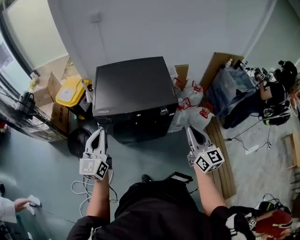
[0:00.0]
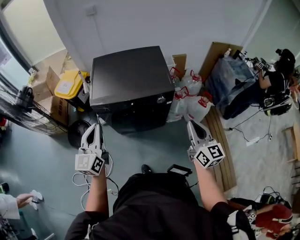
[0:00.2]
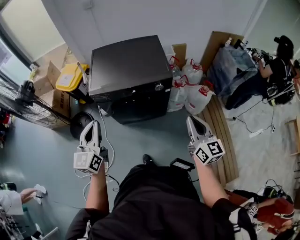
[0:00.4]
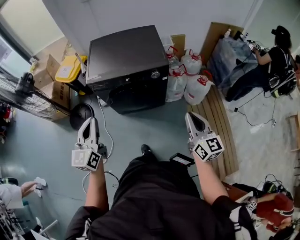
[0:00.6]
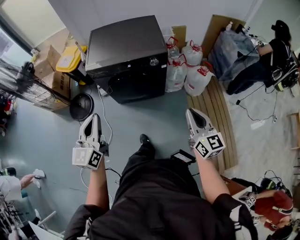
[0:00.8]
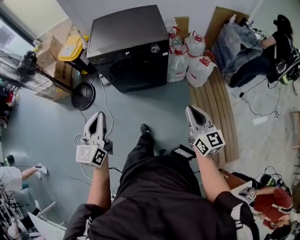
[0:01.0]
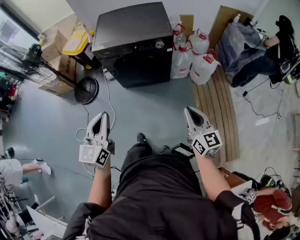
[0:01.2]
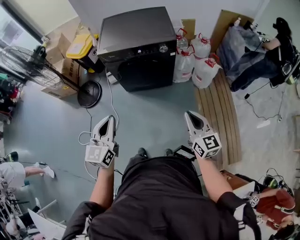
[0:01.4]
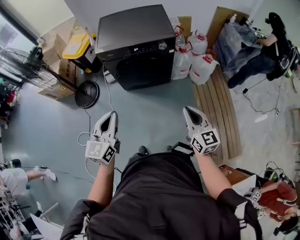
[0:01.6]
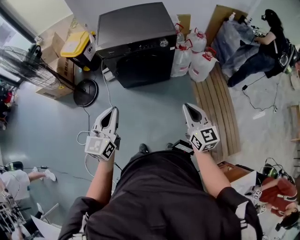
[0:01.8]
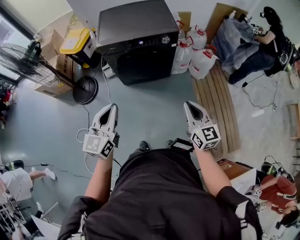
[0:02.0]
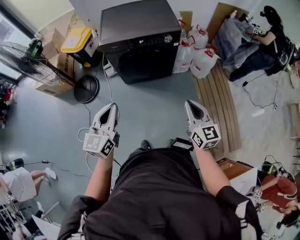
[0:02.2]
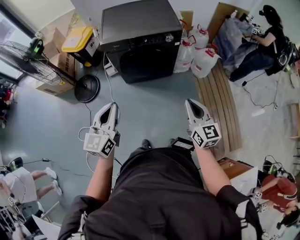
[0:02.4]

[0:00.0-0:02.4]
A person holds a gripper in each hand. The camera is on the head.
0.0 to 1.2 s: The grippers both shift backward by approximately 30 cm.
1.2 to 2.4 s: Both grippers move to the left, roughly 10 cm.

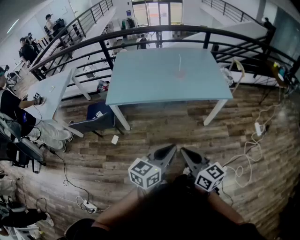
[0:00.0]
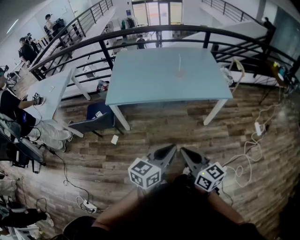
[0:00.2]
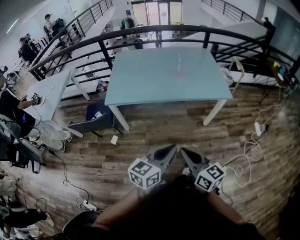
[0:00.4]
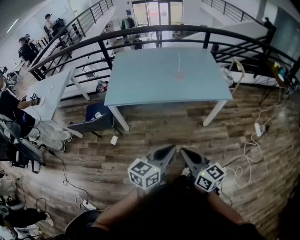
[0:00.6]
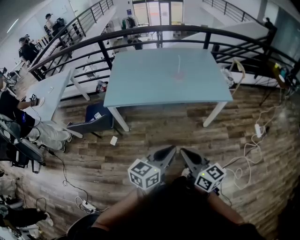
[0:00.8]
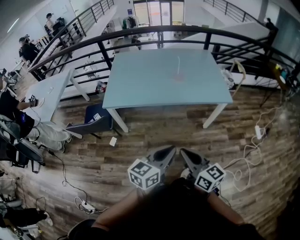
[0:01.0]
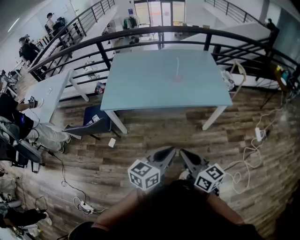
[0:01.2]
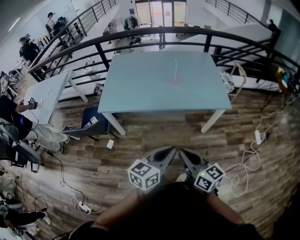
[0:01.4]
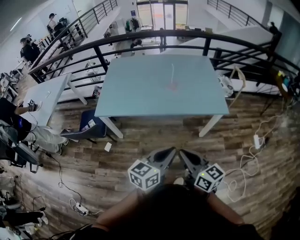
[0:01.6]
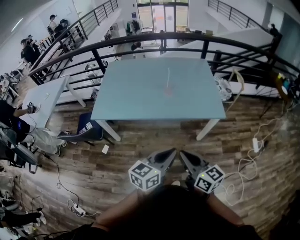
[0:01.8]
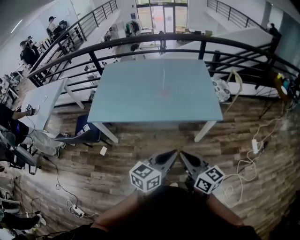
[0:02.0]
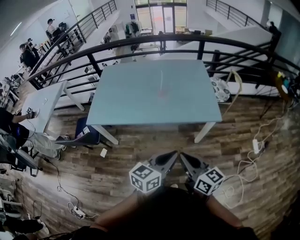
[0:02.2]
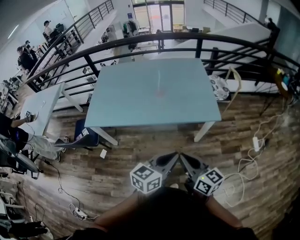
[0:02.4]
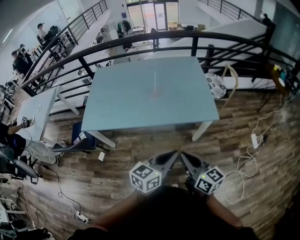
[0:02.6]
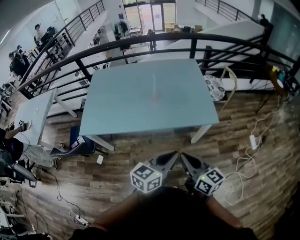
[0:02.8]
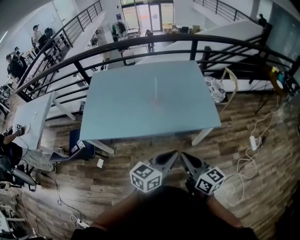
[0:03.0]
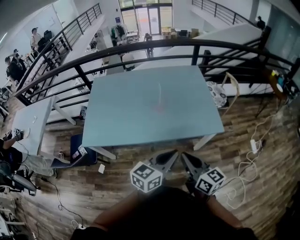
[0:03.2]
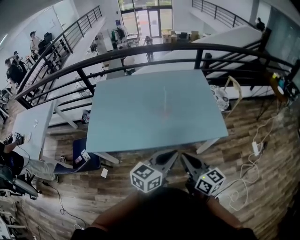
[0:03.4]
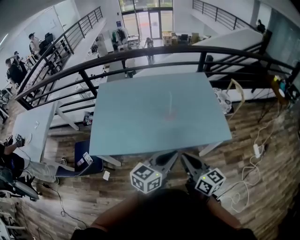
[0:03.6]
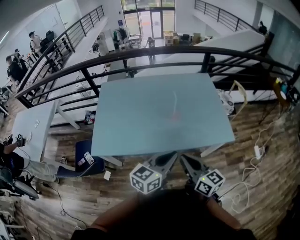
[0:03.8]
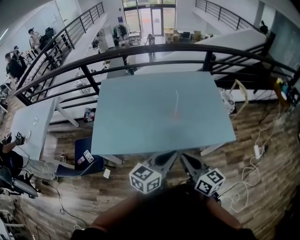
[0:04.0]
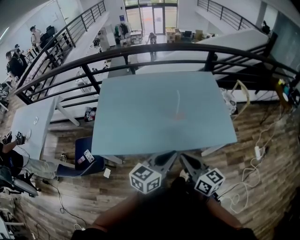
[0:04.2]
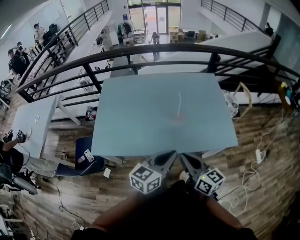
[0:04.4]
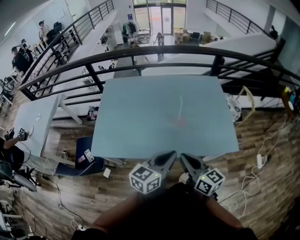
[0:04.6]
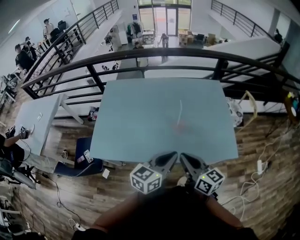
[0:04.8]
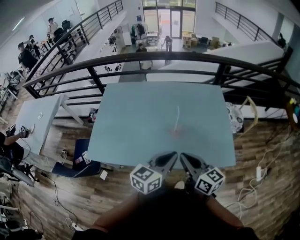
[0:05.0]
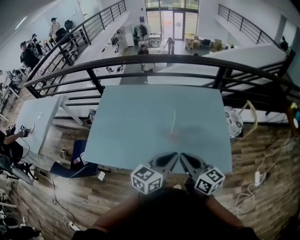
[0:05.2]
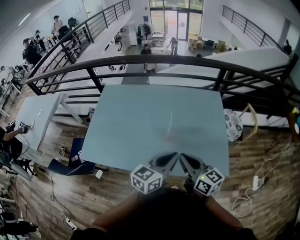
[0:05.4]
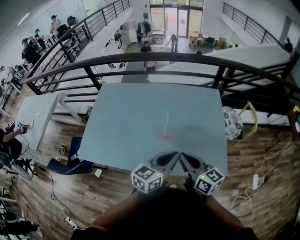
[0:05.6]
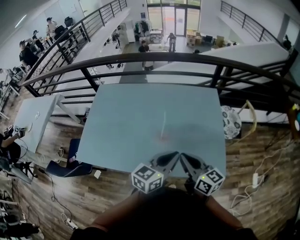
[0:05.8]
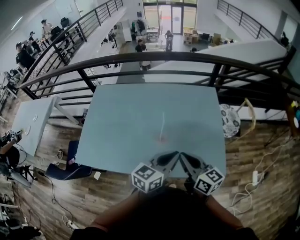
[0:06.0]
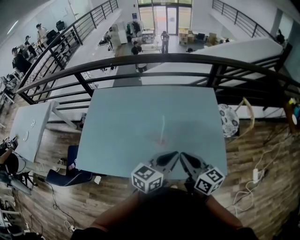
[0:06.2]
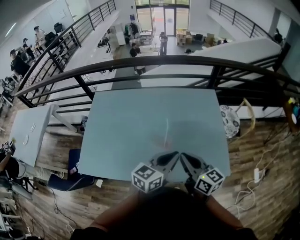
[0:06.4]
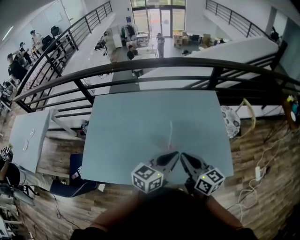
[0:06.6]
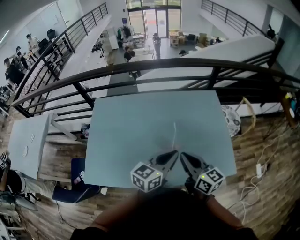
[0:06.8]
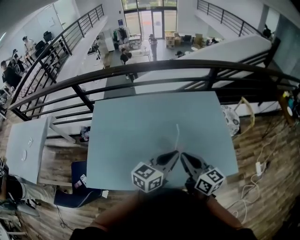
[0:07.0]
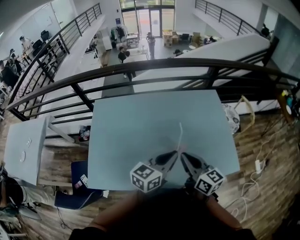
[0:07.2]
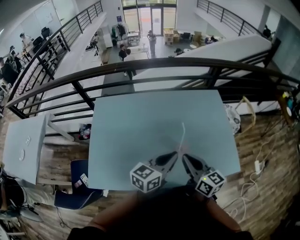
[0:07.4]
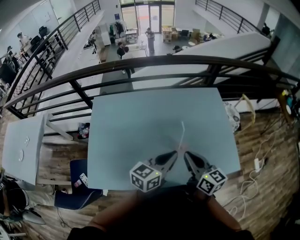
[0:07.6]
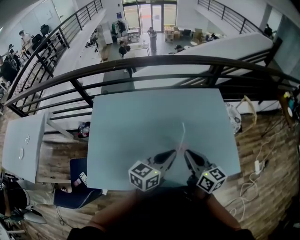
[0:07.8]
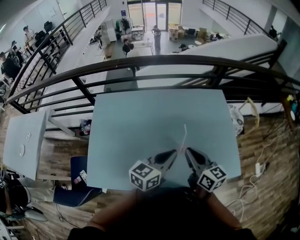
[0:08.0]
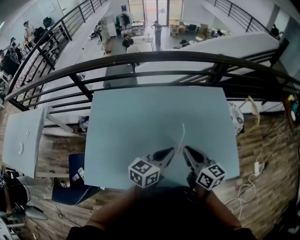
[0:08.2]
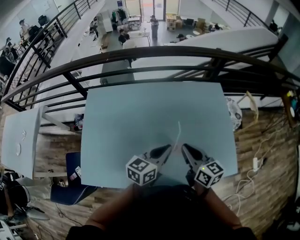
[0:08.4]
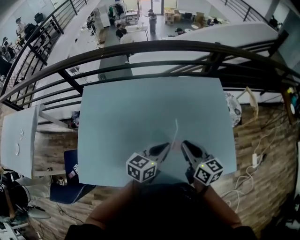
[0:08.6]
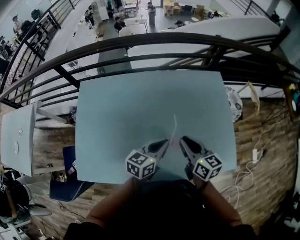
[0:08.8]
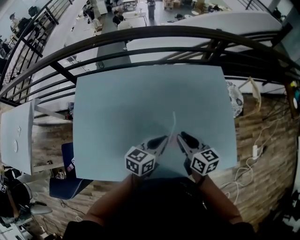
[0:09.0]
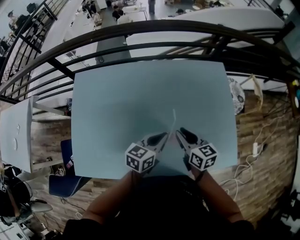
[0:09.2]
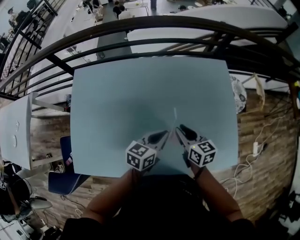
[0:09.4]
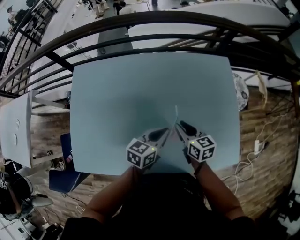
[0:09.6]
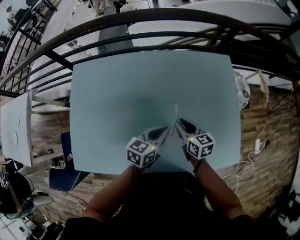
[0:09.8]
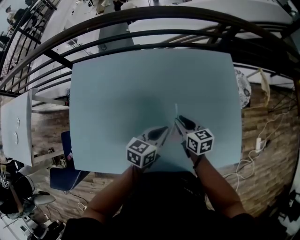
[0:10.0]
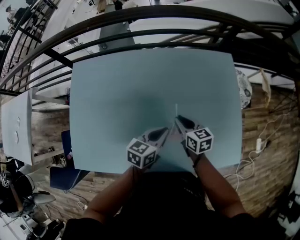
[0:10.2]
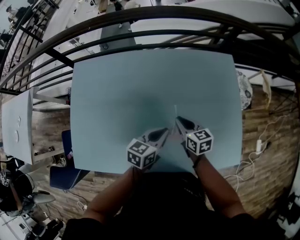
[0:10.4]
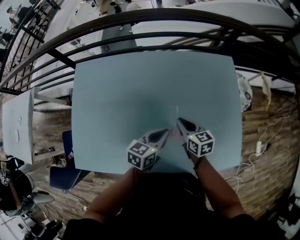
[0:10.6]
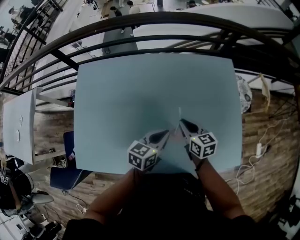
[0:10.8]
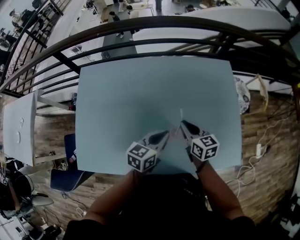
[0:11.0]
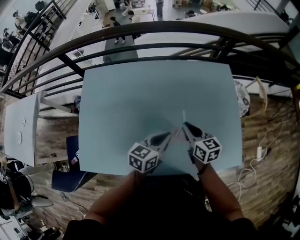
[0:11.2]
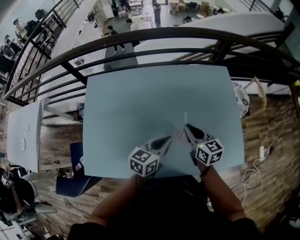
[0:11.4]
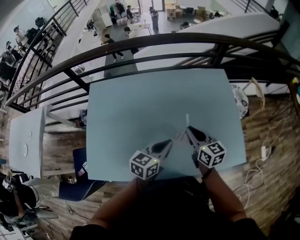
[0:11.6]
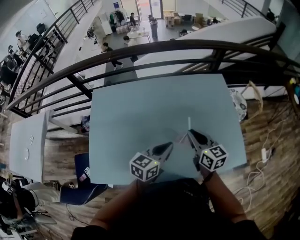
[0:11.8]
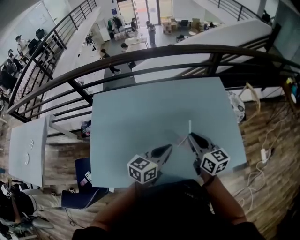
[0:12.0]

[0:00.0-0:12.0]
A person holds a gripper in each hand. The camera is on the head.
0.0 to 1.6 s: Both grippers travel together forward and to the right, some 20 cm.
1.6 to 3.0 s: Both grippers move forward and to the right, roughly 20 cm.
3.0 to 4.4 s: Both grippers travel together to the left and forward, approximately 20 cm.
4.4 to 6.0 s: The right gripper travels forward and to the right by some 25 cm, while the left gripper goes some 25 cm to the right and forward.
6.0 to 7.6 s: Both grippers travel together to the left, approximately 20 cm.
7.6 to 9.0 s: The left gripper goes roughly 15 cm downward and forward. Meanwhile the right gripper shifts roughly 20 cm forward and downward.
9.0 to 10.4 s: The right gripper goes about 15 cm downward and forward. The left gripper goes some 5 cm downward.
10.4 to 12.0 s: The two grippers go about 20 cm upward and backward. The right gripper rotates roughly 20 degrees.

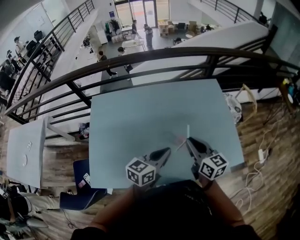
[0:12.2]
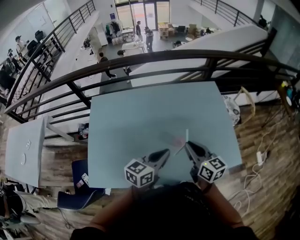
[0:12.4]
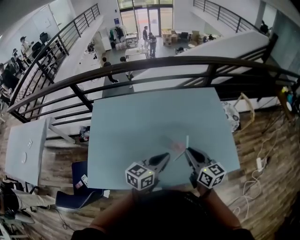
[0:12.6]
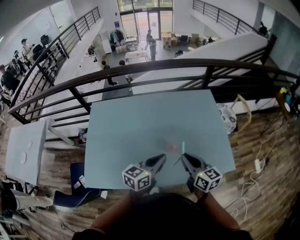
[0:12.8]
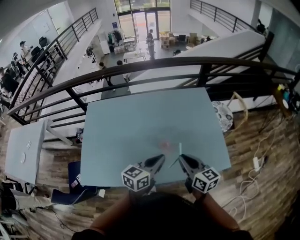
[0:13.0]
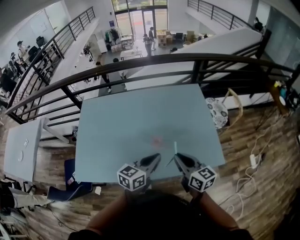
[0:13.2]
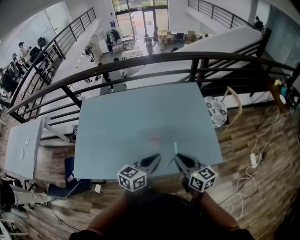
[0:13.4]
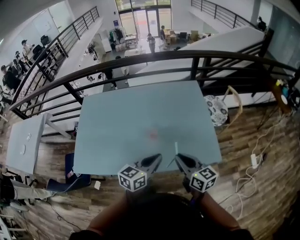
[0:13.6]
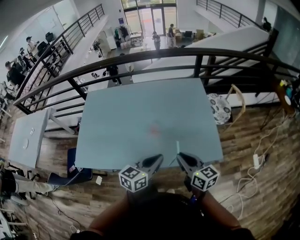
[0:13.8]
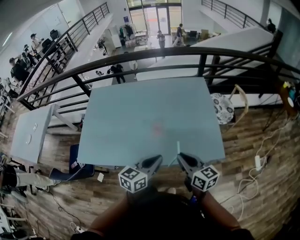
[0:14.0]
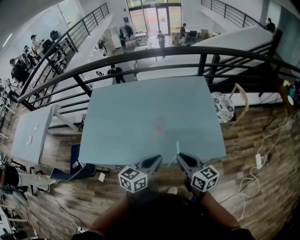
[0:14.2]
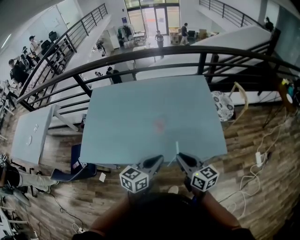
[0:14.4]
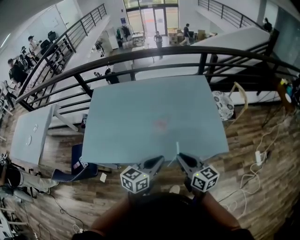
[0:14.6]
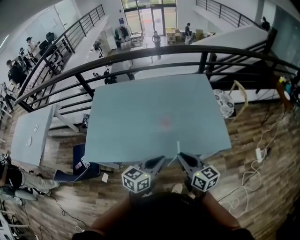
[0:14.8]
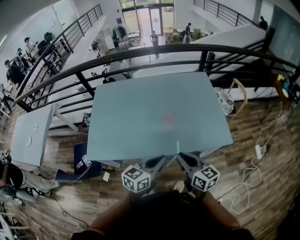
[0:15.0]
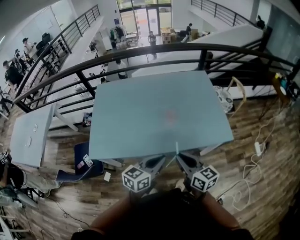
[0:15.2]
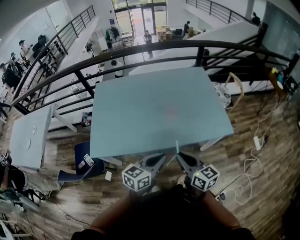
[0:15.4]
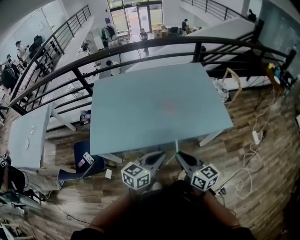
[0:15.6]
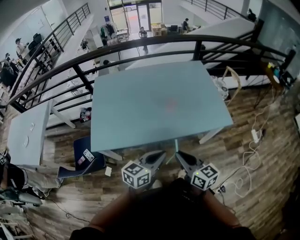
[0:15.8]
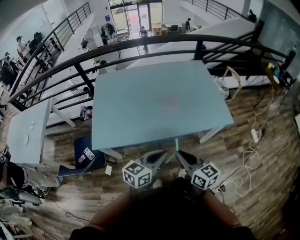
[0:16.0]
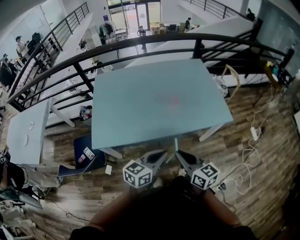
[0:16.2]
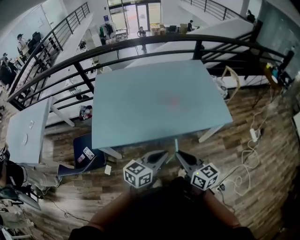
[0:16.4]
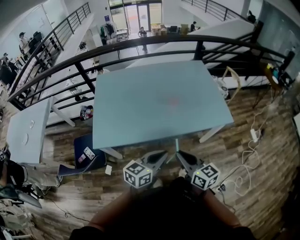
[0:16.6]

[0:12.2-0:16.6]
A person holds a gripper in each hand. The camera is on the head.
12.2 to 13.6 s: The grippers both shift to the right and backward by some 20 cm.
13.6 to 15.2 s: The two grippers go some 20 cm backward and to the left.
15.2 to 16.6 s: Both grippers move backward and to the left, approximately 10 cm.

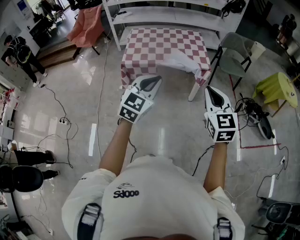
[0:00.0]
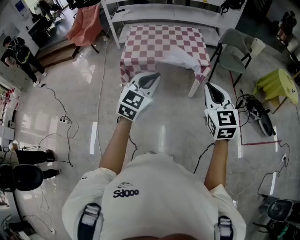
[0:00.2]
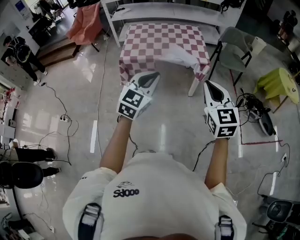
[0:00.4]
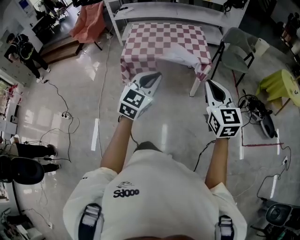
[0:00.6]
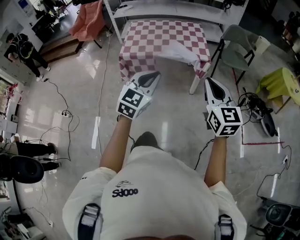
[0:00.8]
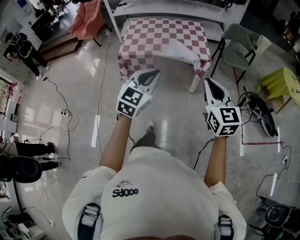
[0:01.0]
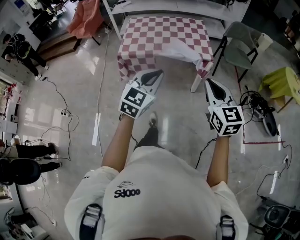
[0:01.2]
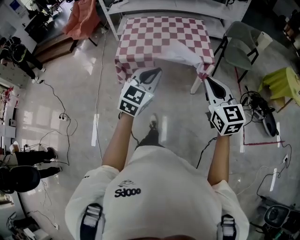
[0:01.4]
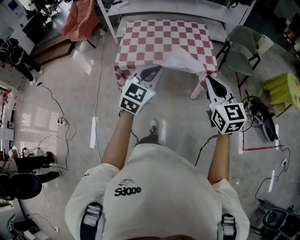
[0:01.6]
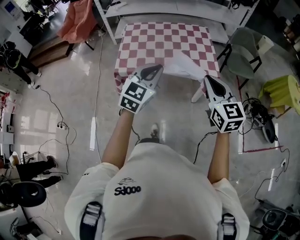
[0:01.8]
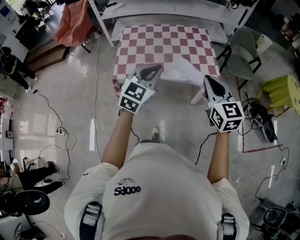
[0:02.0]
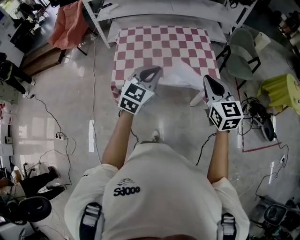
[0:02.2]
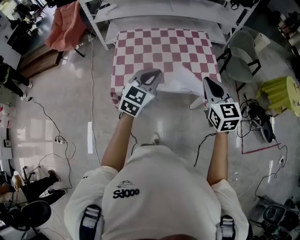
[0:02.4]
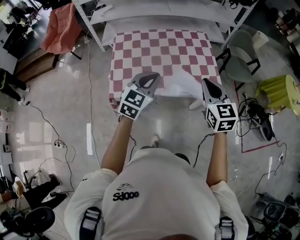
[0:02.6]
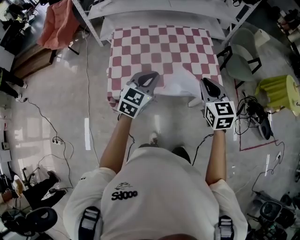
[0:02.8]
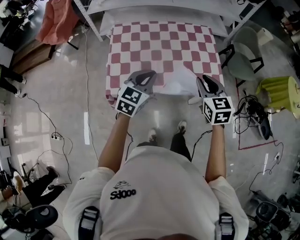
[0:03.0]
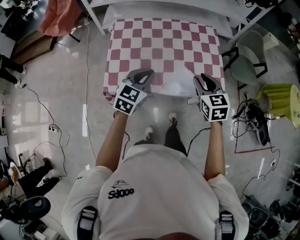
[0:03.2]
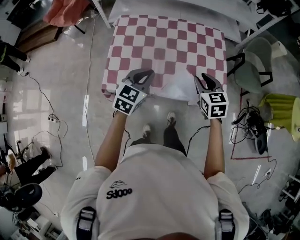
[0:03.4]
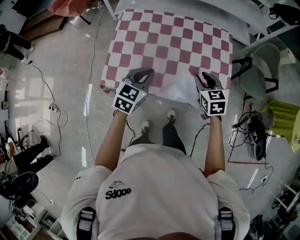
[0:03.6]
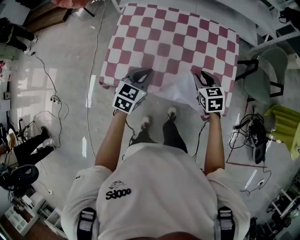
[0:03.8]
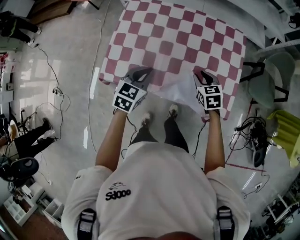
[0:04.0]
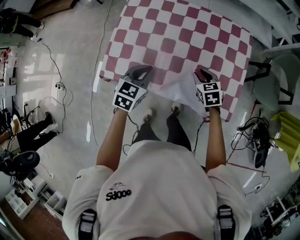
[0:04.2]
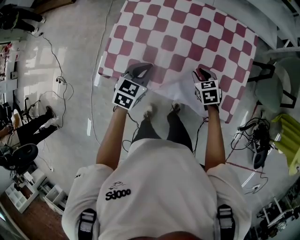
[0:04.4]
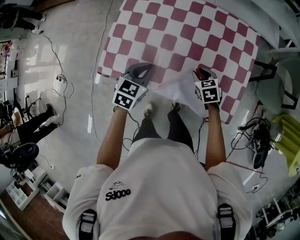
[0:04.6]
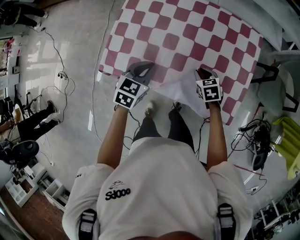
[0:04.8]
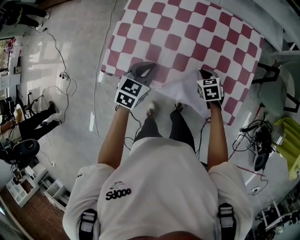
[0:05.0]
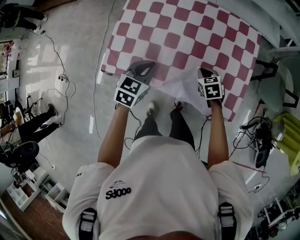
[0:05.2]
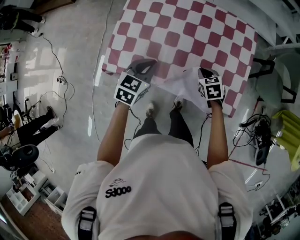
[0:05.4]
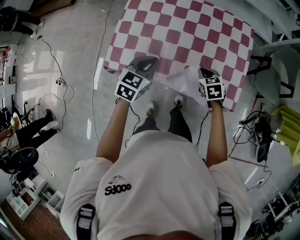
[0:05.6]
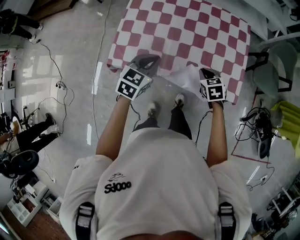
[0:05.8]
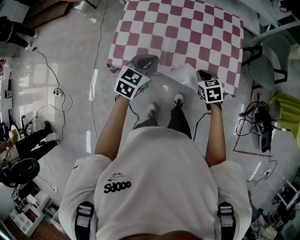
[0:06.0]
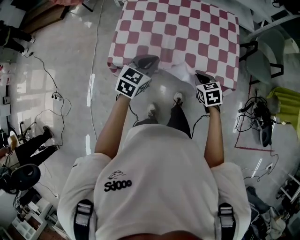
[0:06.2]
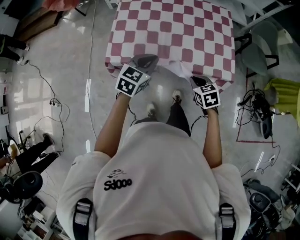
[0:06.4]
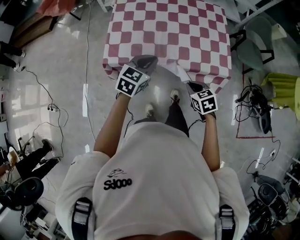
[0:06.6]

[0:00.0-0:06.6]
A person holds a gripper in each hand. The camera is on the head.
0.0 to 1.6 s: The two grippers go some 20 cm forward.
1.6 to 3.2 s: The left gripper is displaced forward and to the left by approximately 35 cm. The right gripper is displaced forward by about 35 cm, swivels some 20 degrees, and opens.
3.2 to 5.0 s: The right gripper moves downward and forward, roughly 30 cm, changes its angle by about 30 degrees, and closes its fingers. The left gripper goes roughly 15 cm downward and forward, and swivels about 30 degrees.
5.0 to 6.6 s: The left gripper moves backward and upward, some 15 cm, and turns by roughly 20 degrees. The right gripper travels backward by approximately 30 cm.
